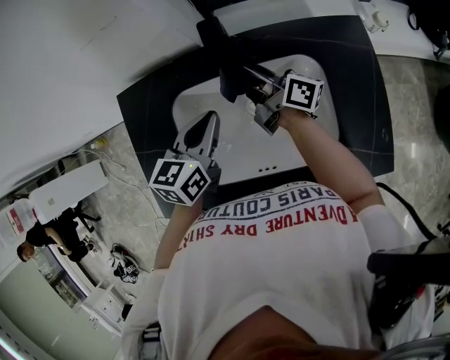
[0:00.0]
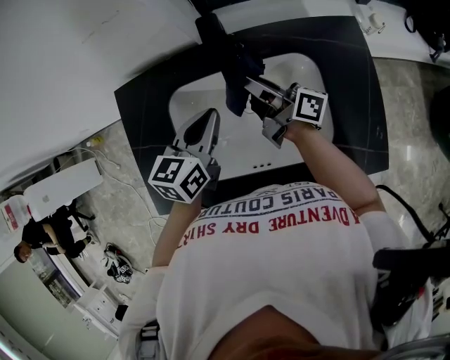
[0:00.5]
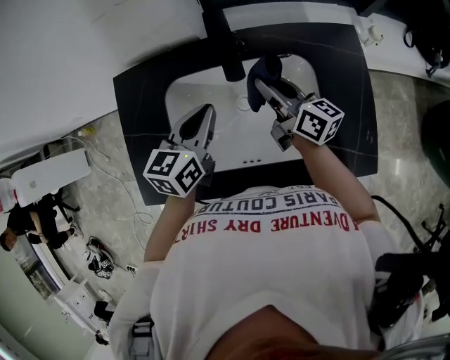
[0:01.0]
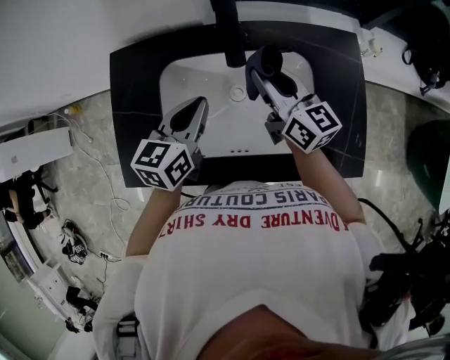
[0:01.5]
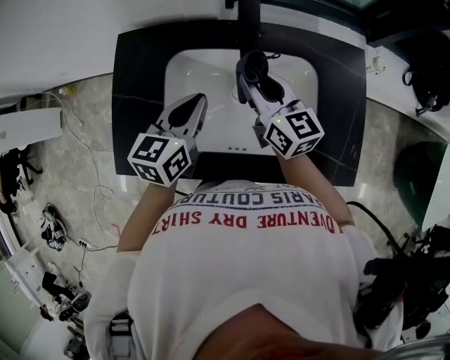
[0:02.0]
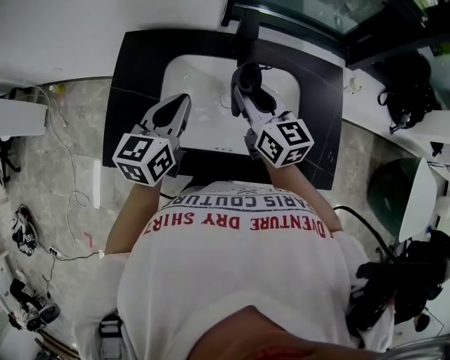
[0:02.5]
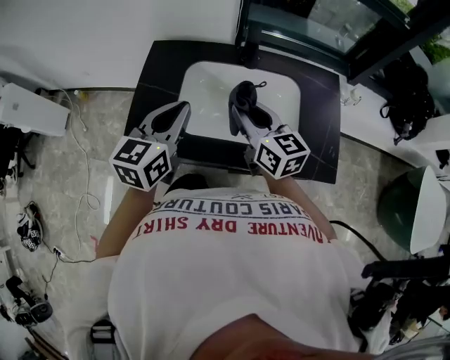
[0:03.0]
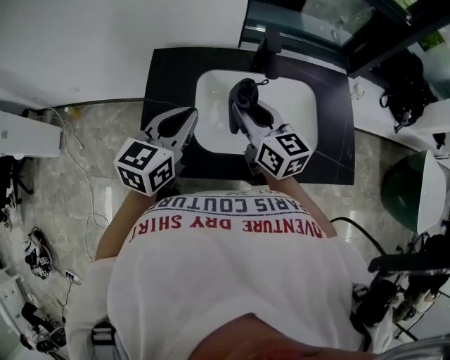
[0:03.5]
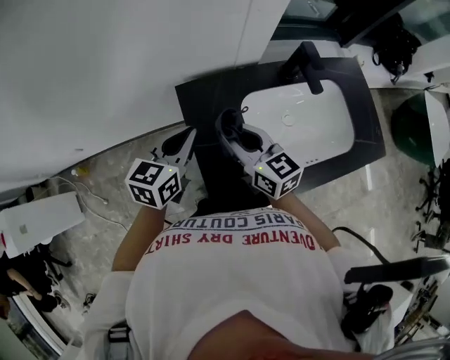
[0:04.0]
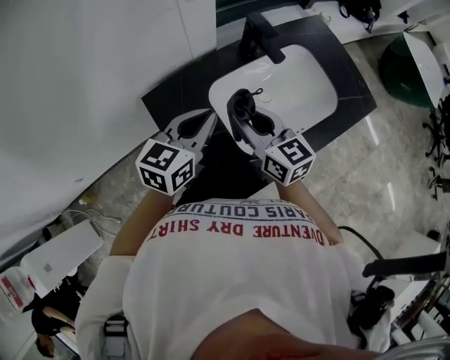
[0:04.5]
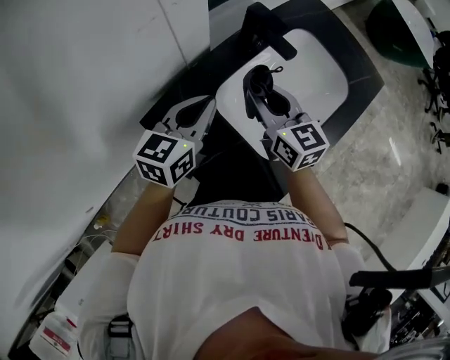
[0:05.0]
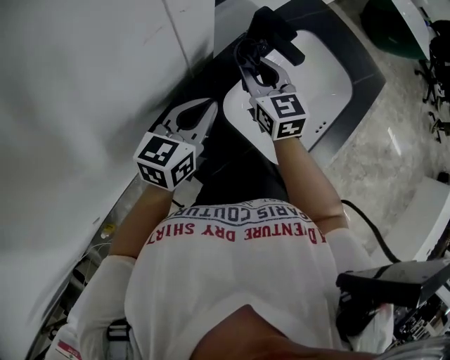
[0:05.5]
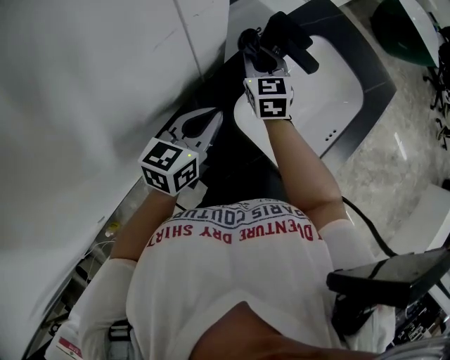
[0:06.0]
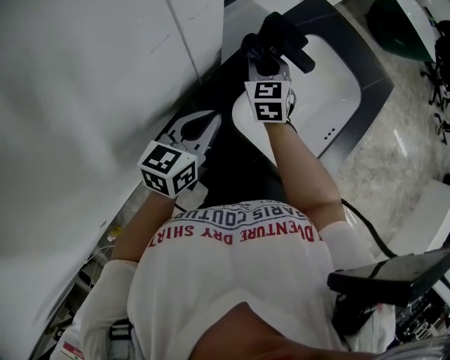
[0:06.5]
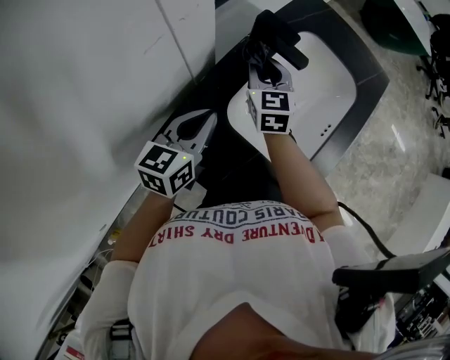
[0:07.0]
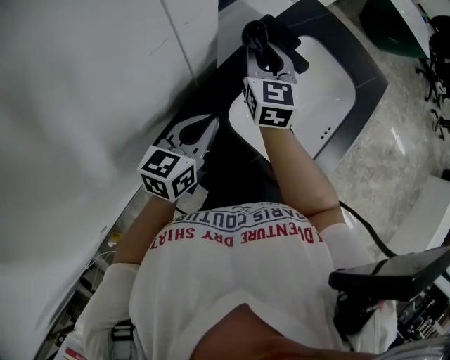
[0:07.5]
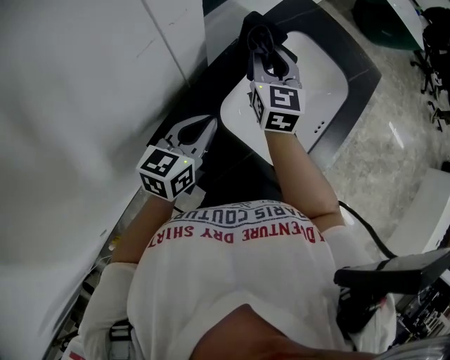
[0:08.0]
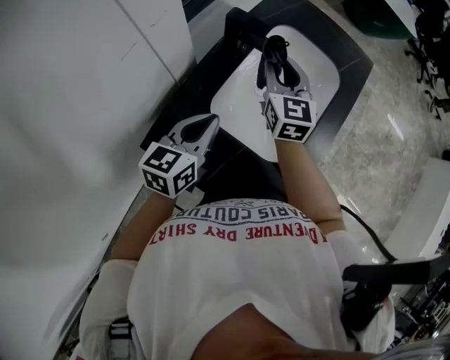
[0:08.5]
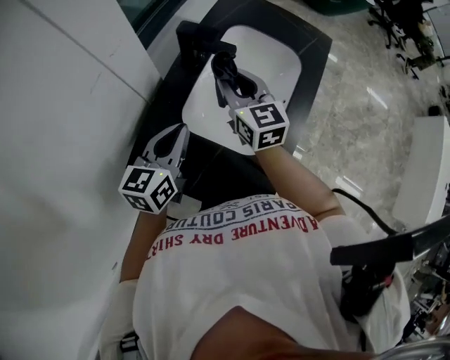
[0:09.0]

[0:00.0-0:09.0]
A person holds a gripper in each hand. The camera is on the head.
0:00.0 to 0:02.0: The left gripper goes some 5 cm backward. The right gripper moves backward, roughly 10 cm, and rolls counterclockwise, seen from behind, by some 50 degrees.
0:02.0 to 0:04.5: The right gripper changes place by roughly 20 cm, and turns by some 30 degrees. The left gripper swivels approximately 40 degrees.
0:04.5 to 0:07.0: The left gripper ends up roughly 15 cm from where it was. The right gripper shifts by some 25 cm, and changes its angle by approximately 50 degrees.
0:07.0 to 0:09.0: The left gripper shifts approximately 5 cm to the right. Meanwhile the right gripper travels to the right, upward and backward by about 15 cm.

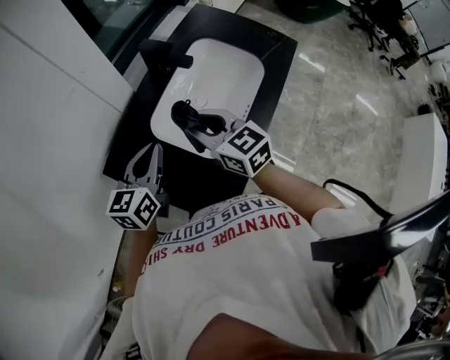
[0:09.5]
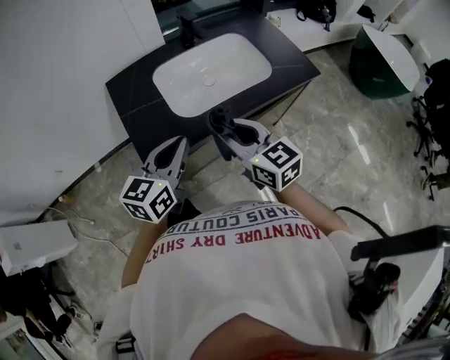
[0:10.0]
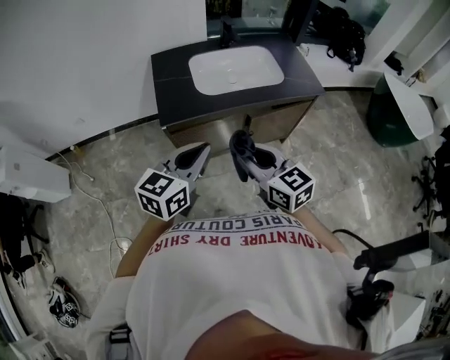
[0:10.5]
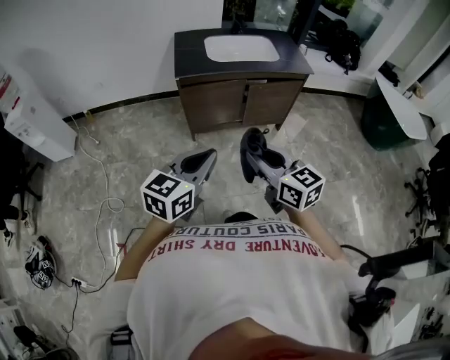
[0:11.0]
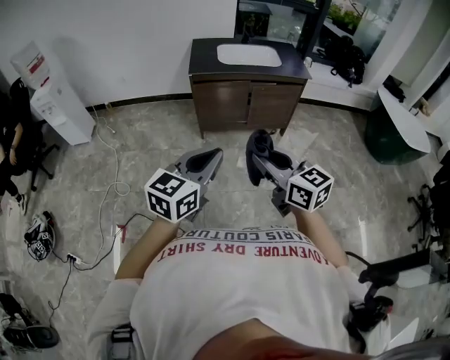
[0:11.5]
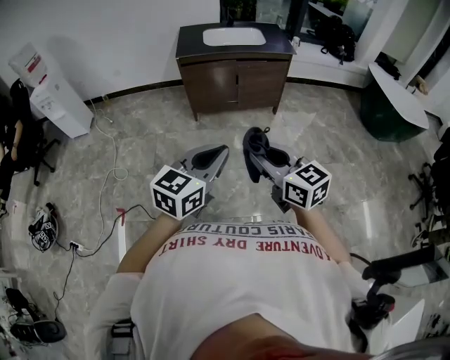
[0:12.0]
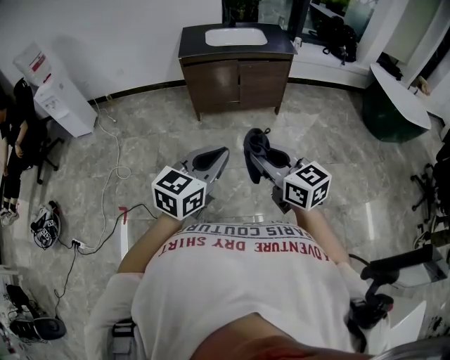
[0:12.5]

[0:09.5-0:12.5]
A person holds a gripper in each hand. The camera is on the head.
0:09.5 to 0:11.0: Both grippers are carried approximately 80 cm. The right gripper rotates roughly 40 degrees, while the left gripper rotates roughly 30 degrees.
0:11.0 to 0:12.5: The left gripper goes roughly 35 cm backward and to the right. Meanwhile the right gripper is displaced backward by approximately 35 cm.

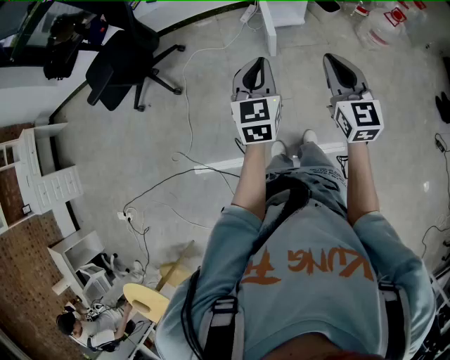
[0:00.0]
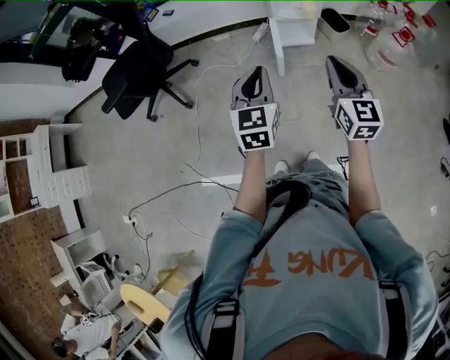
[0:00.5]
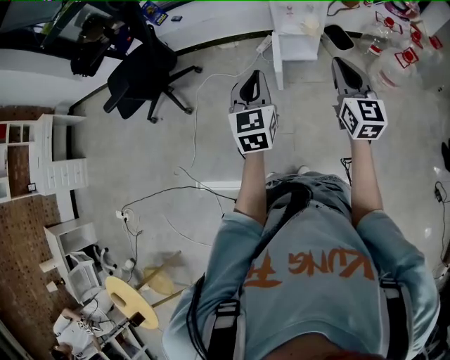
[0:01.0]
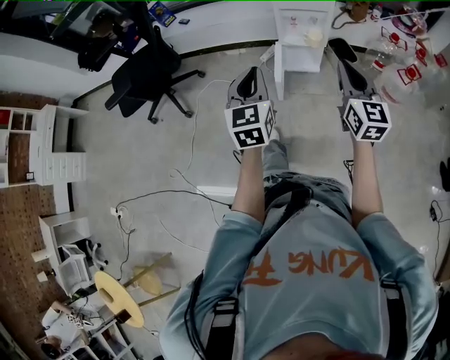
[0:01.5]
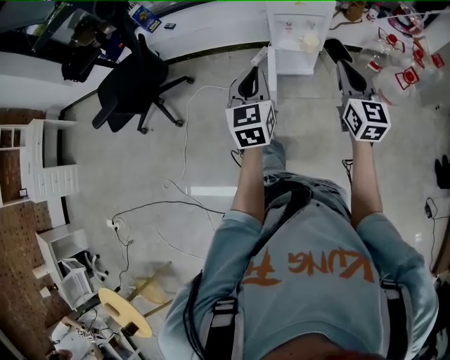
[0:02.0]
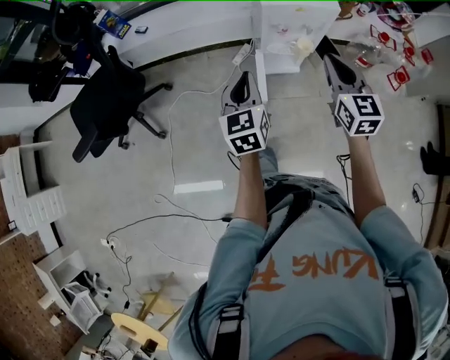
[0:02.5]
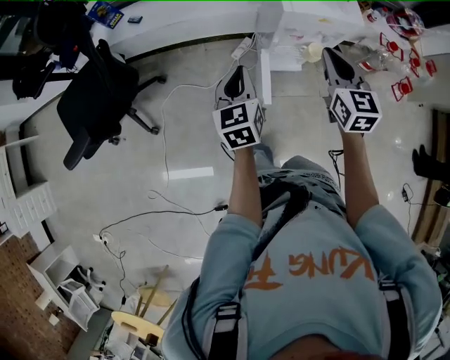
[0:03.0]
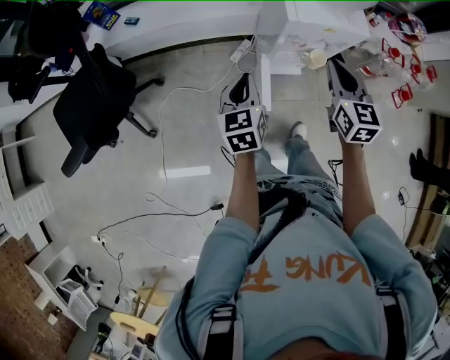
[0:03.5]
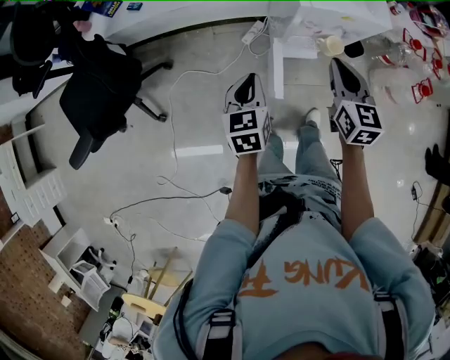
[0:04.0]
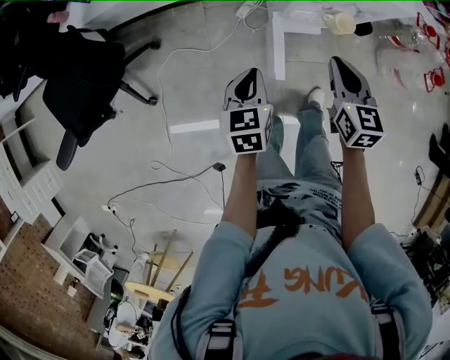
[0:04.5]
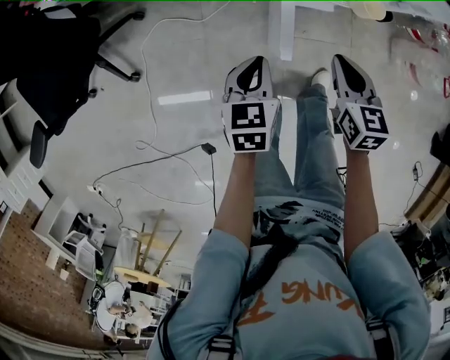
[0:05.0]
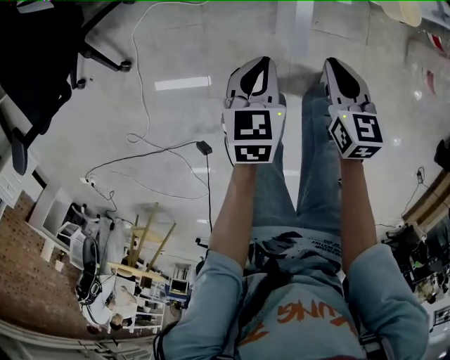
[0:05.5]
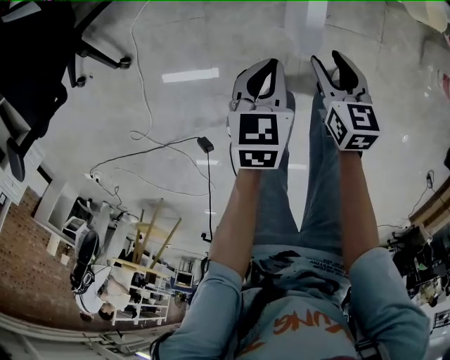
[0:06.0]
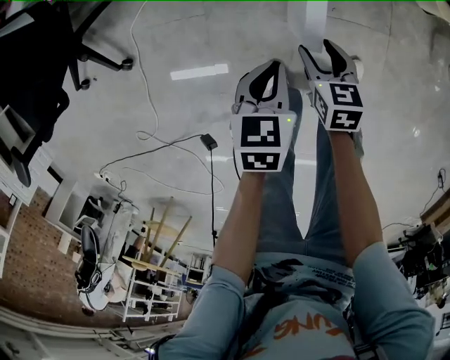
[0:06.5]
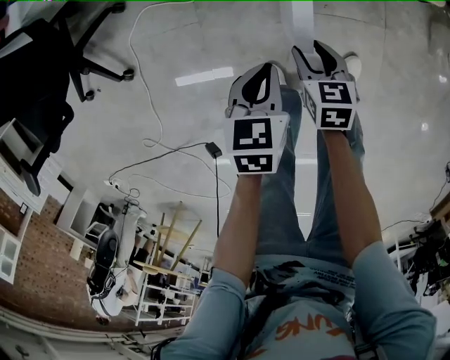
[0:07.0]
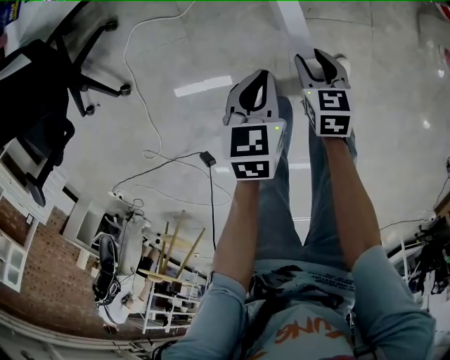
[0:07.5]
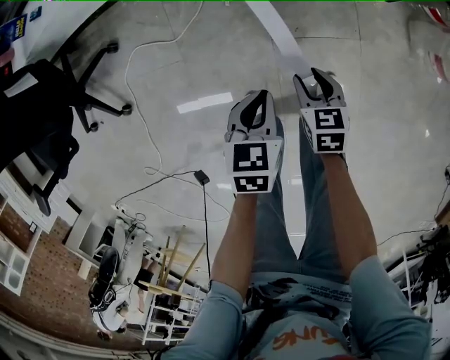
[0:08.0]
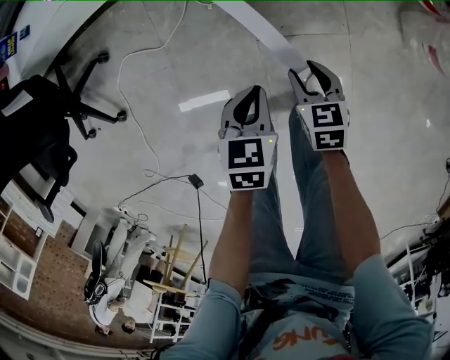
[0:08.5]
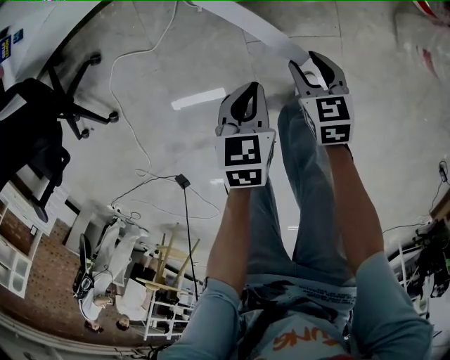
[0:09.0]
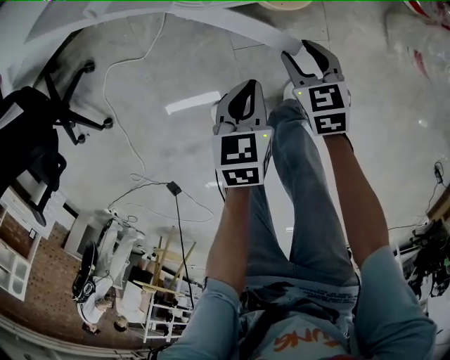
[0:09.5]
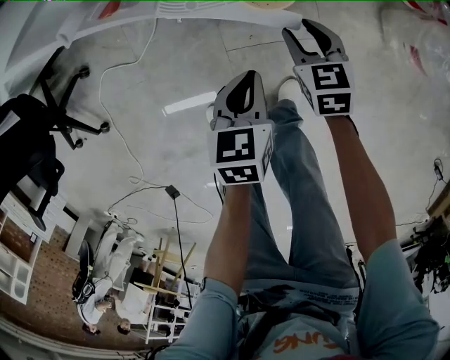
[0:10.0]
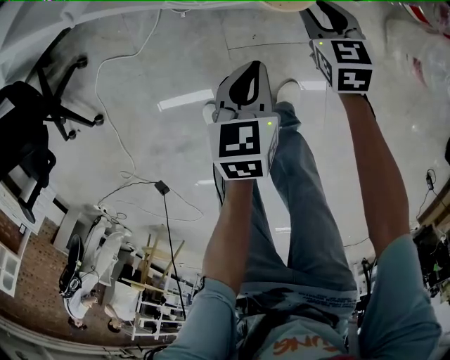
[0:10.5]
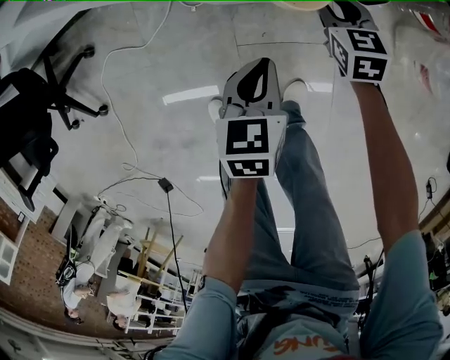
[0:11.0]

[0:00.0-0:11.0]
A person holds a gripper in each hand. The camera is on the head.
0:00.0 to 0:02.0: The two grippers go roughly 25 cm forward and to the right.
0:02.0 to 0:03.5: The left gripper heads forward and downward, covering about 25 cm. The right gripper shifts some 25 cm forward.
0:03.5 to 0:05.5: The grippers both shift downward by some 35 cm. The right gripper swivels roughly 30 degrees. The left gripper turns by approximately 20 degrees.
0:05.5 to 0:07.5: The left gripper moves downward and to the right, some 10 cm; the right gripper goes approximately 15 cm downward, and opens up.
0:07.5 to 0:09.0: The grippers both shift to the right and forward by approximately 15 cm.
0:09.0 to 0:11.0: The right gripper moves forward and to the right, approximately 20 cm. The left gripper shifts about 10 cm to the right and forward.

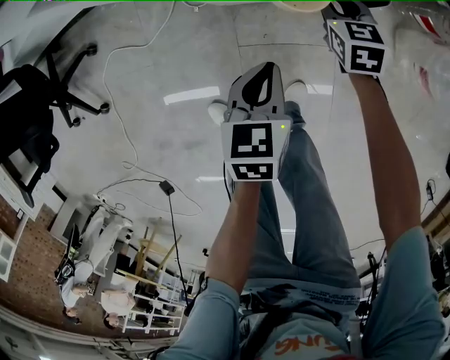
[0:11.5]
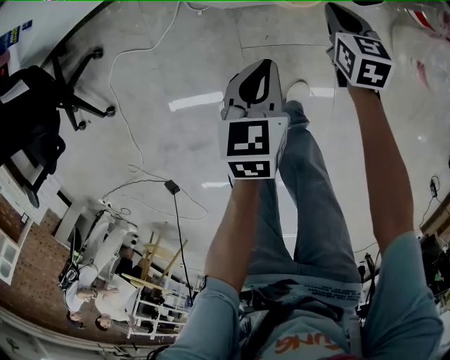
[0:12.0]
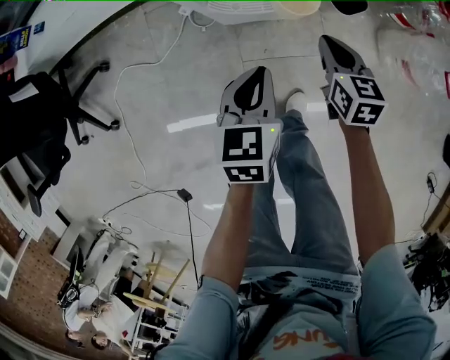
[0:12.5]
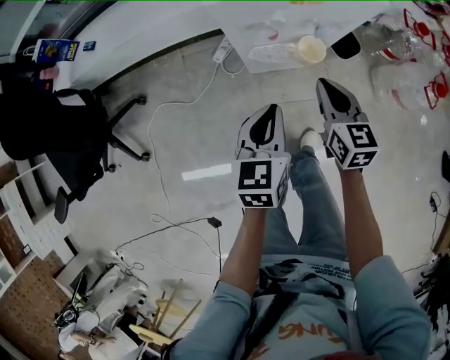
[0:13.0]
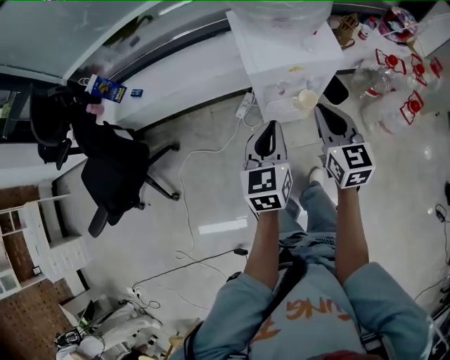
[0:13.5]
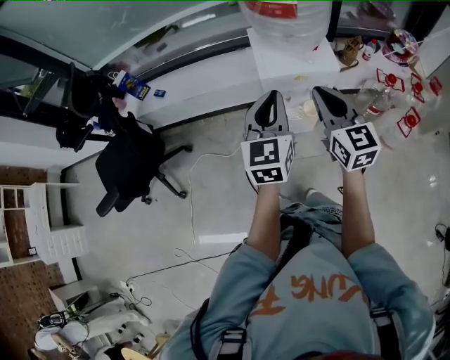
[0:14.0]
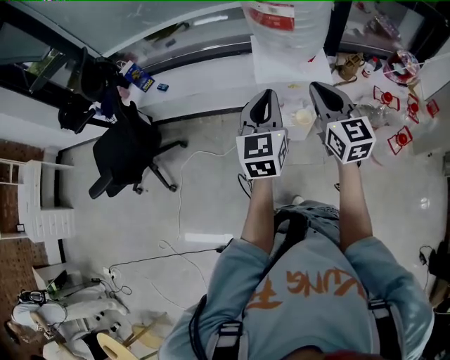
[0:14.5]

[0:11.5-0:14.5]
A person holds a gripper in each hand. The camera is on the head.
0:11.5 to 0:13.0: The left gripper shifts roughly 20 cm upward and to the left. Meanwhile the right gripper heads upward, backward and to the left, covering some 30 cm, and rotates roughly 20 degrees.
0:13.0 to 0:14.5: The two grippers go approximately 40 cm upward. The left gripper swivels about 30 degrees, while the right gripper changes its angle by about 30 degrees.
